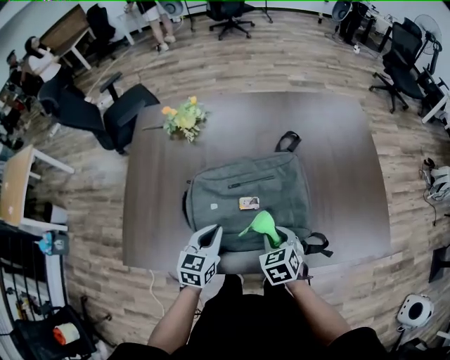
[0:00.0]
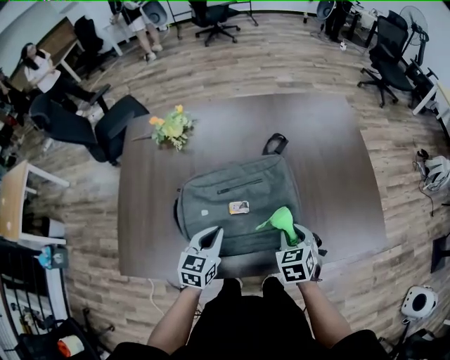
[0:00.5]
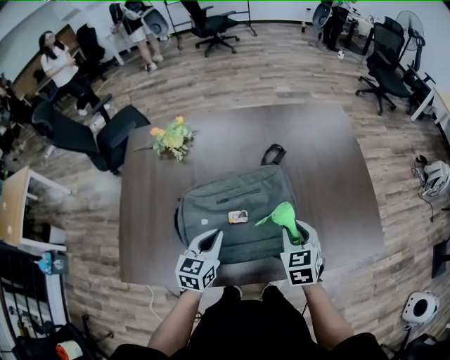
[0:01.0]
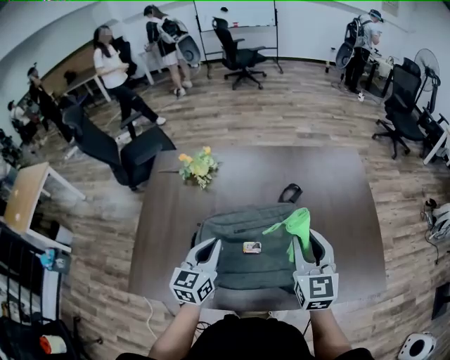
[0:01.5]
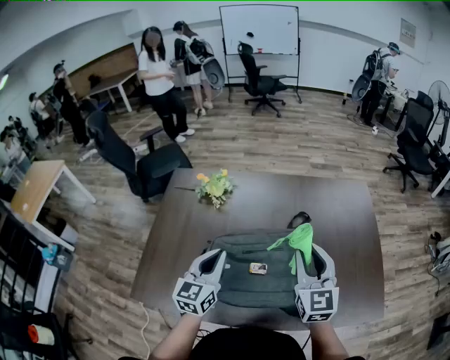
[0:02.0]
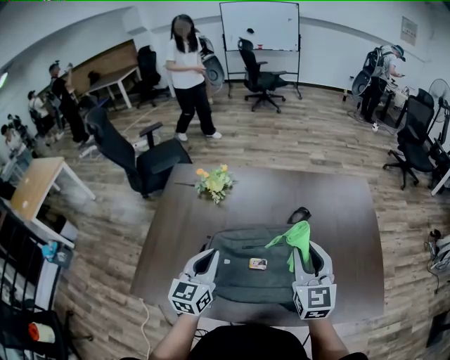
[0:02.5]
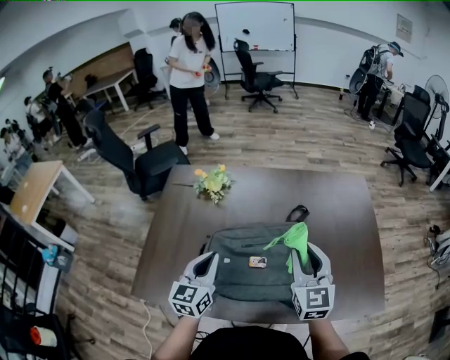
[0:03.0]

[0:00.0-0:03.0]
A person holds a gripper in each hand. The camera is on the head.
0:00.0 to 0:01.5: The left gripper moves upward and forward, roughly 15 cm; the right gripper goes about 25 cm upward and forward, and tilts its fingers some 40 degrees upward.
0:01.5 to 0:03.0: The grippers move only a little.

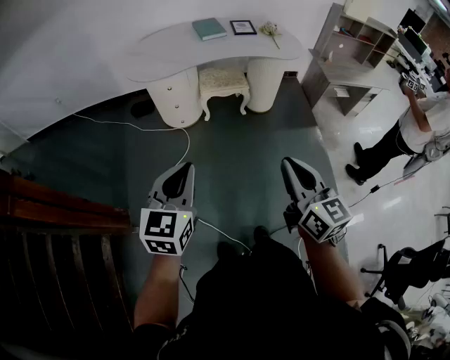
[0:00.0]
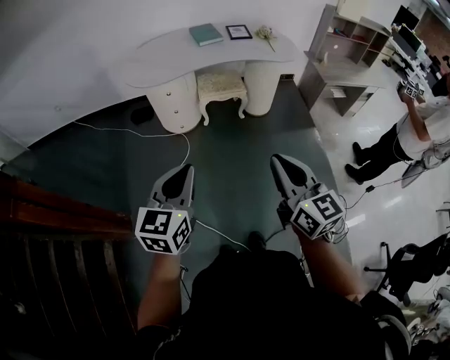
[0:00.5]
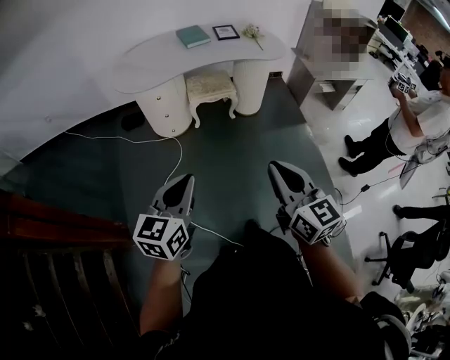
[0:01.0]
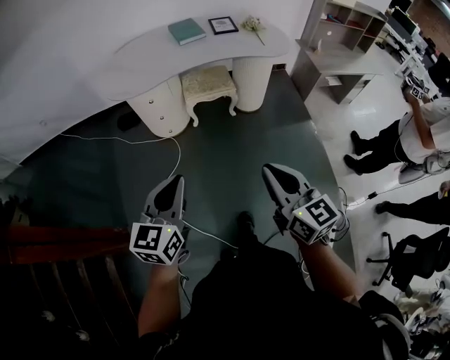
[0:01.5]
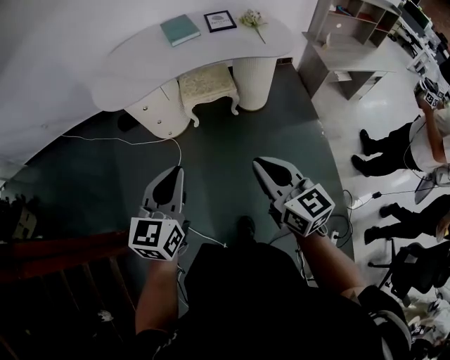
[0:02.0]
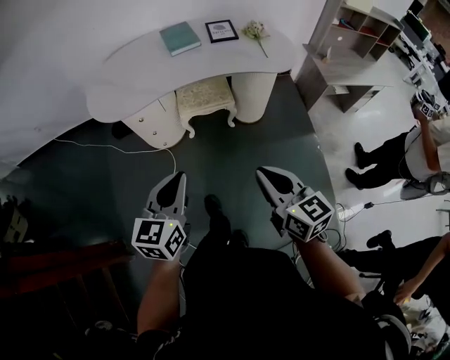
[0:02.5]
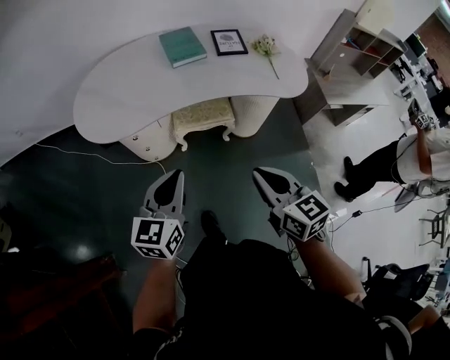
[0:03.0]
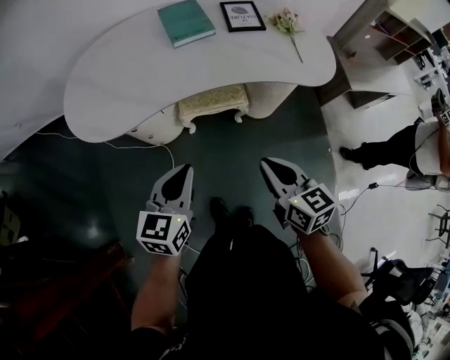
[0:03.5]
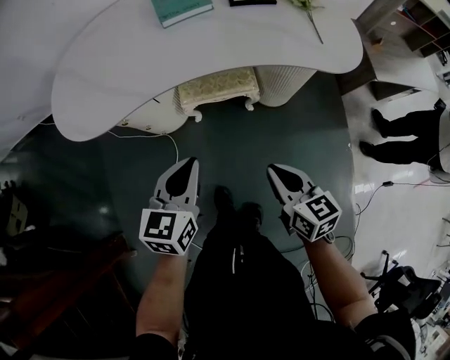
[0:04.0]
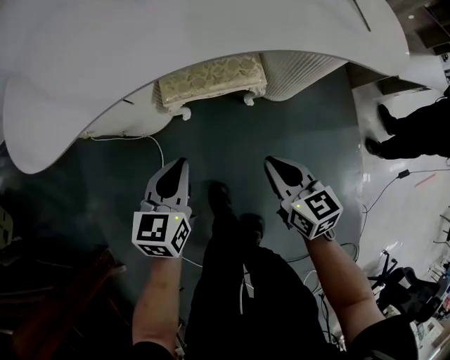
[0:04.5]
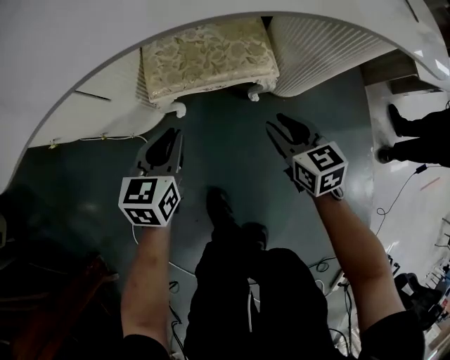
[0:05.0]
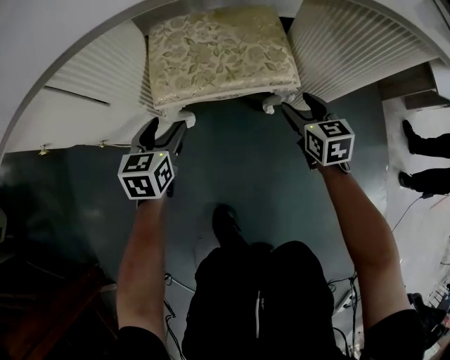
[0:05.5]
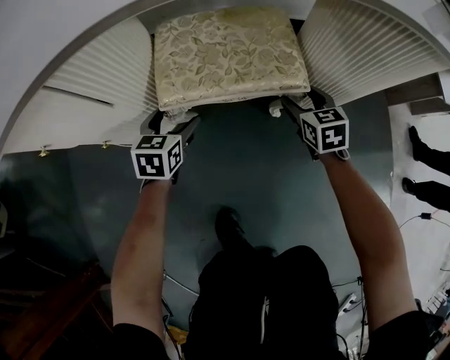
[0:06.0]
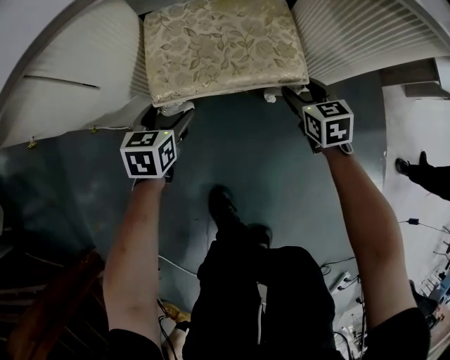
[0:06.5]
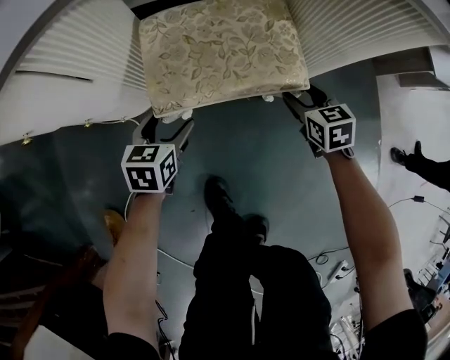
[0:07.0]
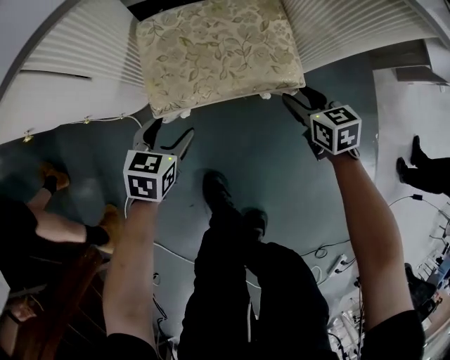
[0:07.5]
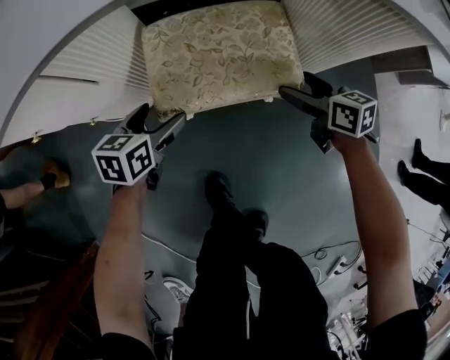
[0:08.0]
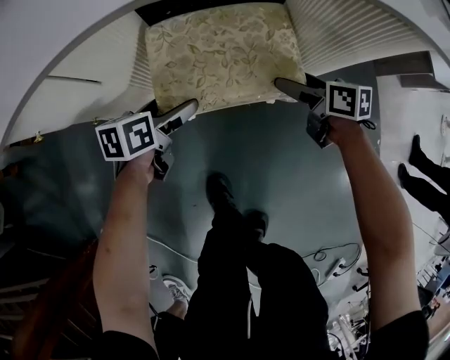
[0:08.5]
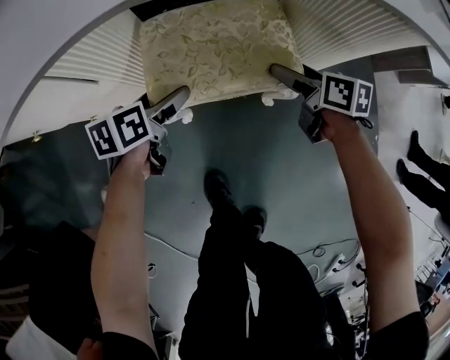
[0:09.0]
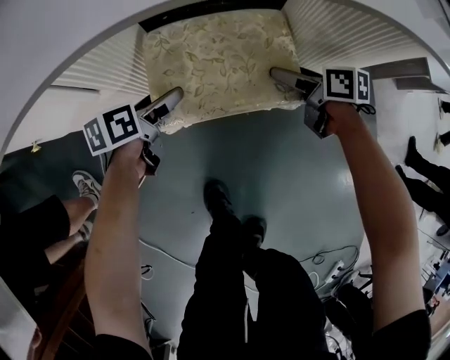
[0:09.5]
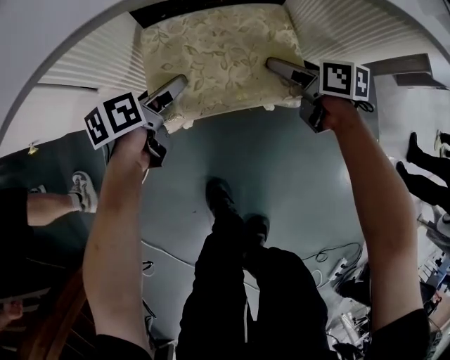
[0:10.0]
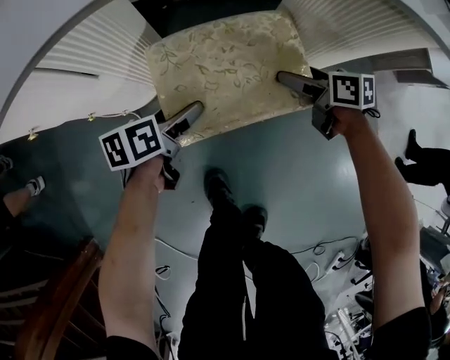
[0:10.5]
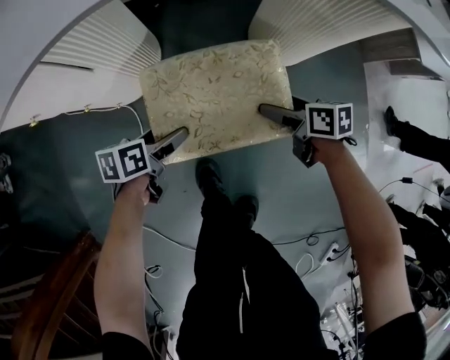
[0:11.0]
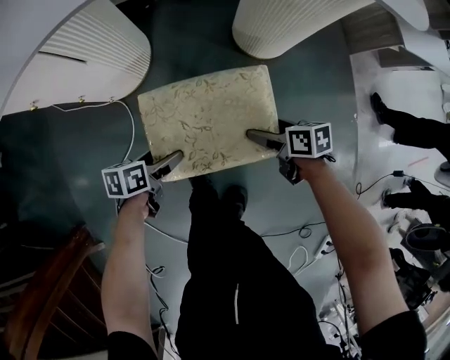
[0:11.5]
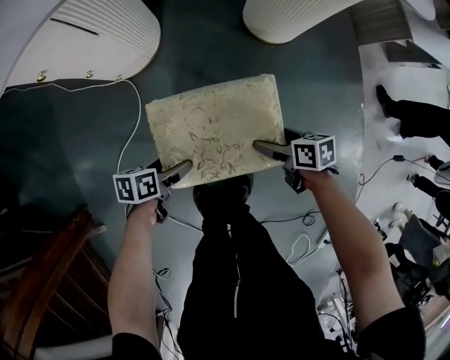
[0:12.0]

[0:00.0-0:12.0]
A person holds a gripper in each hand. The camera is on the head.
0:00.0 to 0:02.0: The left gripper moves forward and to the right, about 25 cm, while the right gripper is displaced forward by roughly 20 cm.
0:02.0 to 0:04.0: The grippers both shift forward and downward by approximately 40 cm. The right gripper swivels approximately 20 degrees.
0:04.0 to 0:06.0: Both grippers travel together downward and forward, approximately 60 cm. The left gripper opens its fingers, while the right gripper rotates some 30 degrees, and opens up.
0:06.0 to 0:08.0: Both grippers move upward, about 5 cm. The right gripper rotates approximately 30 degrees.
0:08.0 to 0:10.0: Both grippers move forward, approximately 5 cm. The left gripper changes its angle by approximately 30 degrees.
0:10.0 to 0:12.0: The left gripper swivels approximately 20 degrees.

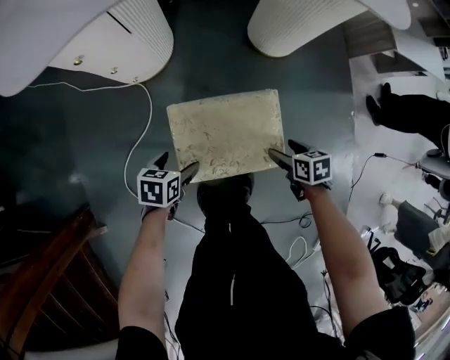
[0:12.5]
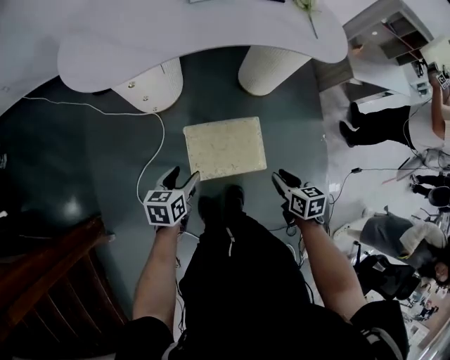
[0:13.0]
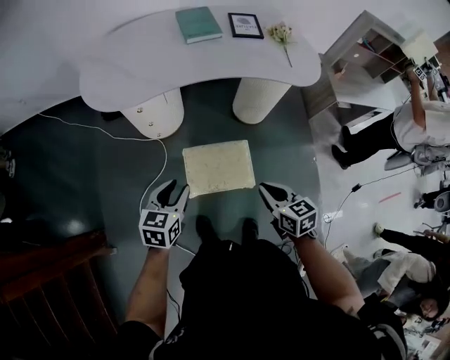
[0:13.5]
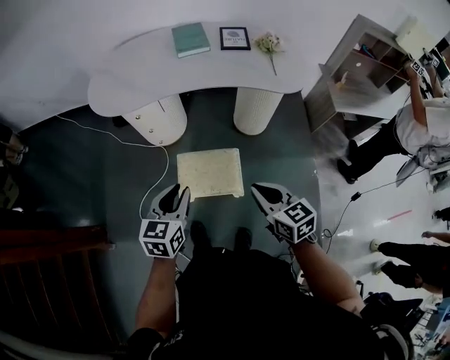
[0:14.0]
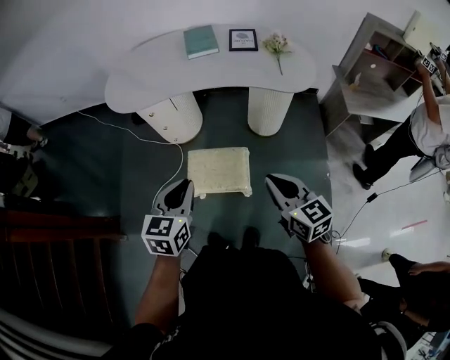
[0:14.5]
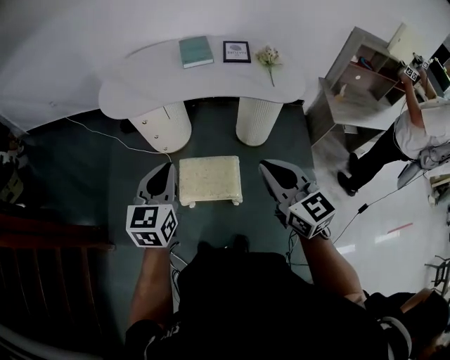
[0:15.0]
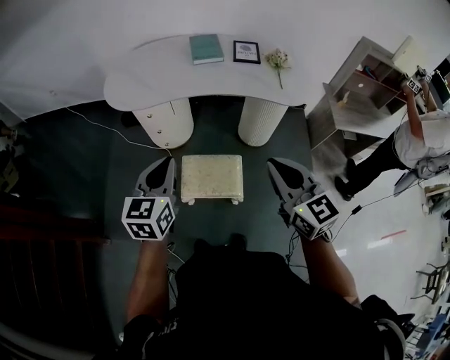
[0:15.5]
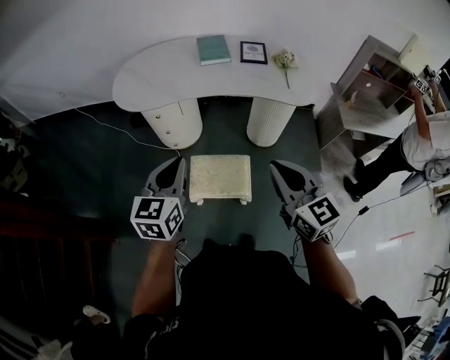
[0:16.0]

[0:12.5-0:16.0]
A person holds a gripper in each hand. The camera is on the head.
0:12.5 to 0:14.5: Both grippers travel together upward, some 50 cm. The right gripper points its fingers roughly 40 degrees further upward, and closes up, while the left gripper points its fingers some 30 degrees further upward, and closes.
0:14.5 to 0:16.0: The right gripper travels upward and to the left by roughly 15 cm, while the left gripper travels upward, to the left and forward by about 10 cm.

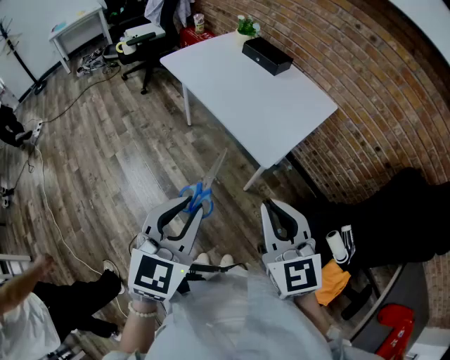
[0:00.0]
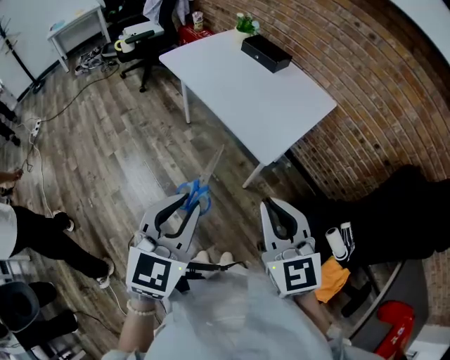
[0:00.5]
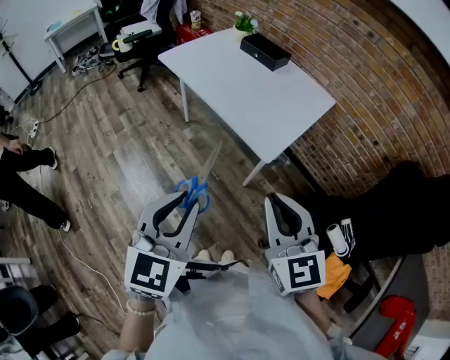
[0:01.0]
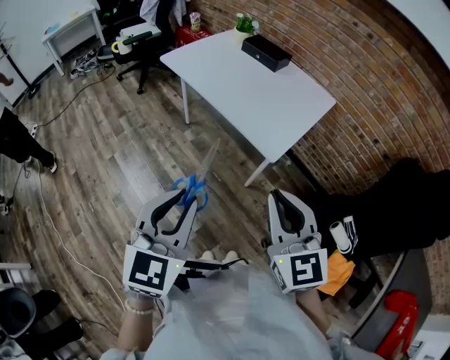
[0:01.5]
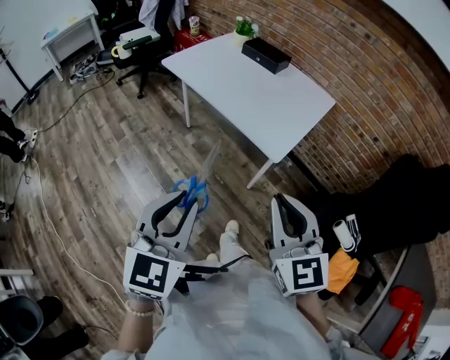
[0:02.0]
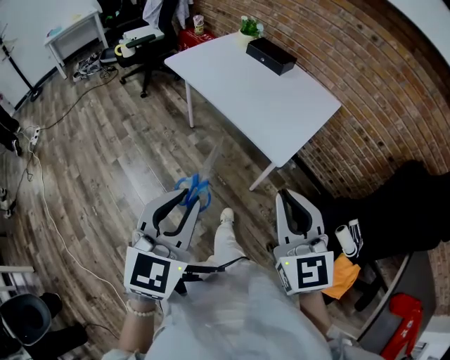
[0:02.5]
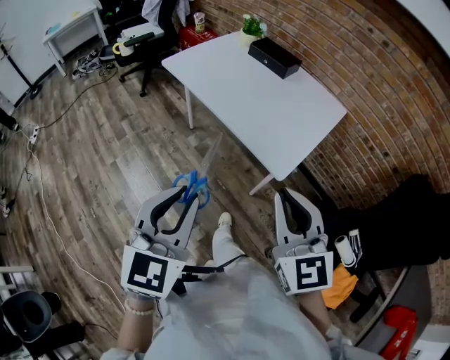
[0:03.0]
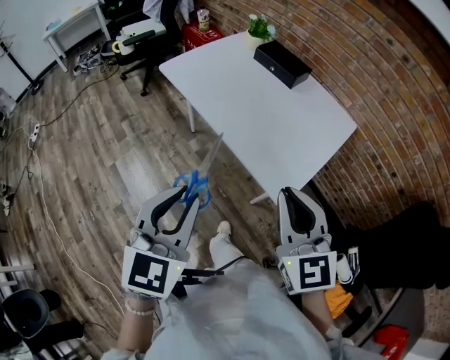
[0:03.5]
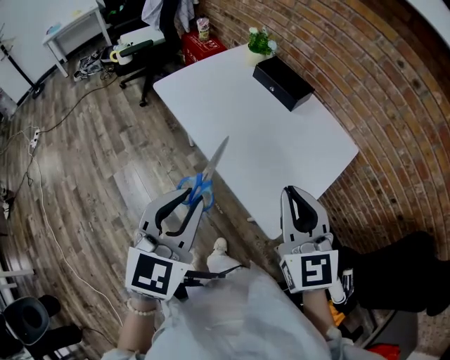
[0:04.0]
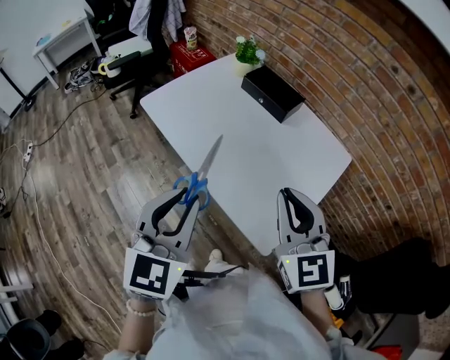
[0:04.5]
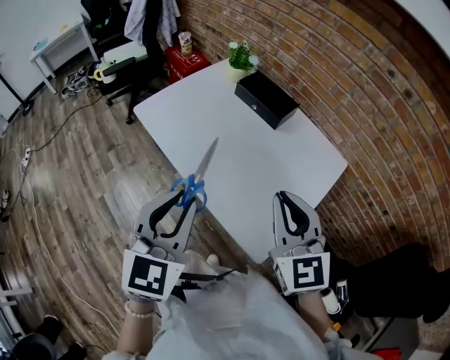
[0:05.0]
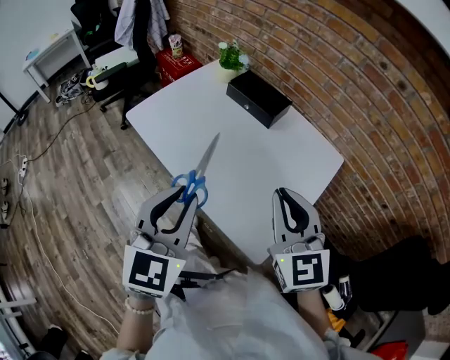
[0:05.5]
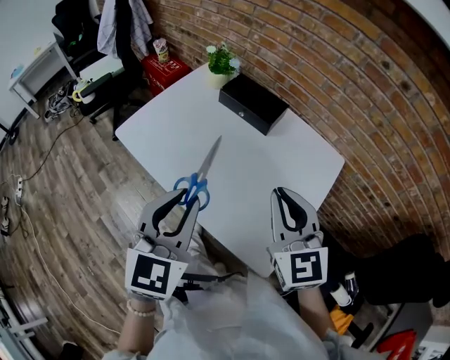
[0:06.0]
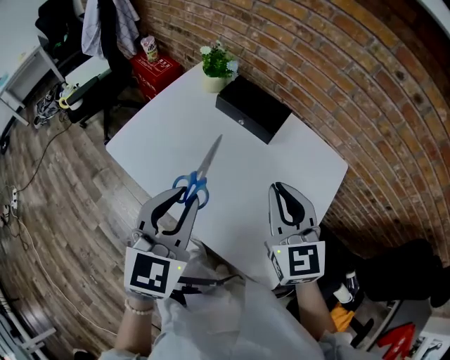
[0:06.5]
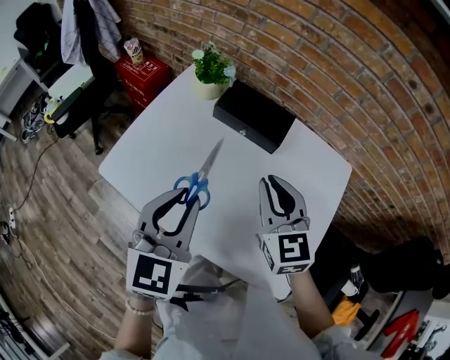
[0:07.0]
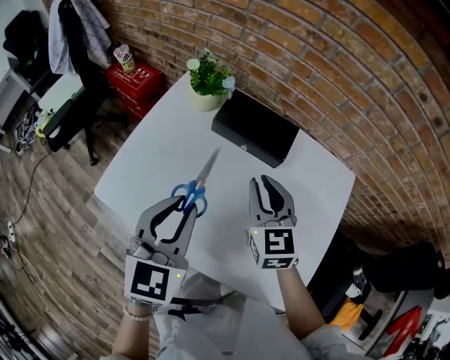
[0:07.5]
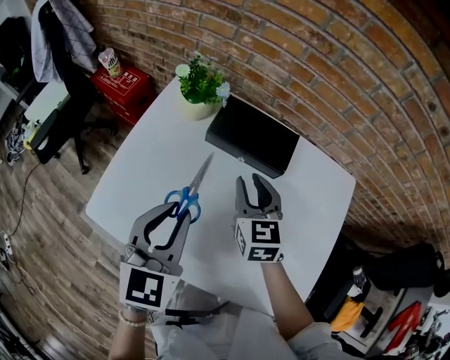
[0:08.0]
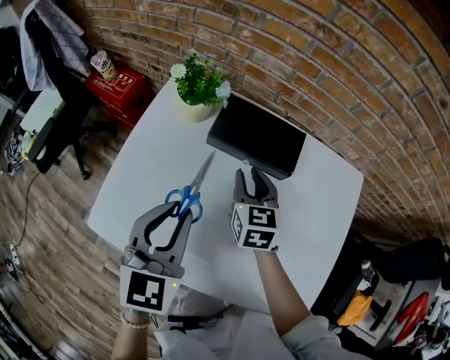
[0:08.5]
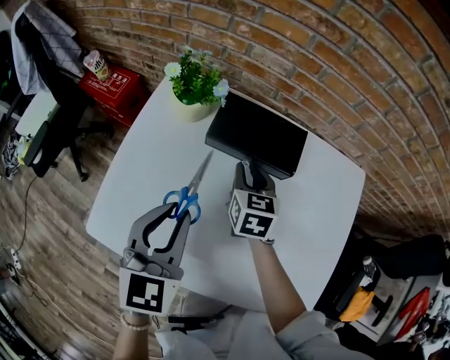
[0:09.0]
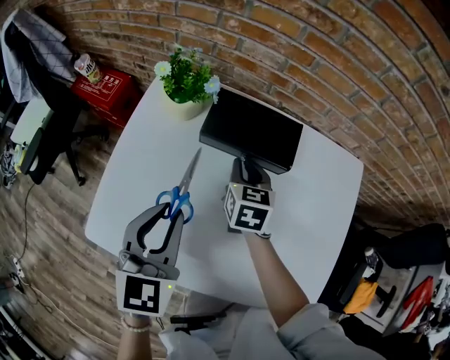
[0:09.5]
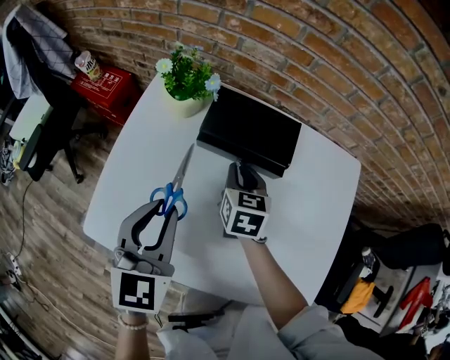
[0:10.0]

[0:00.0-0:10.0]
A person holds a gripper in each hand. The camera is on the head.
0:00.0 to 0:02.0: The right gripper is displaced to the left by about 5 cm. The left gripper goes approximately 10 cm to the left.
0:02.0 to 0:04.0: The two grippers go about 35 cm forward.
0:04.0 to 0:06.0: The grippers both shift forward by some 15 cm.
0:06.0 to 0:08.0: The left gripper goes roughly 30 cm forward. Meanwhile the right gripper travels forward and downward by approximately 35 cm, and changes its angle by roughly 30 degrees.
0:08.0 to 0:10.0: The left gripper moves about 5 cm, while the right gripper heads downward, covering roughly 10 cm, and changes its angle by roughly 20 degrees.
